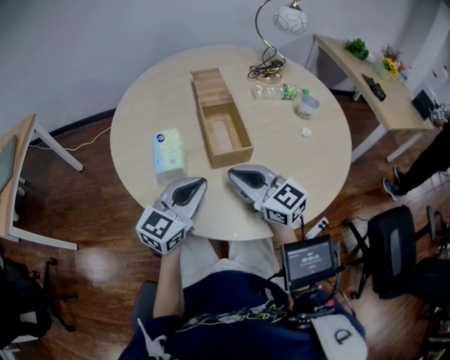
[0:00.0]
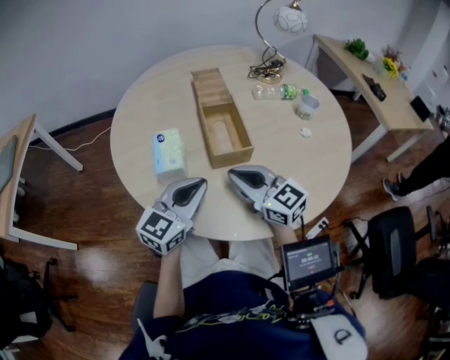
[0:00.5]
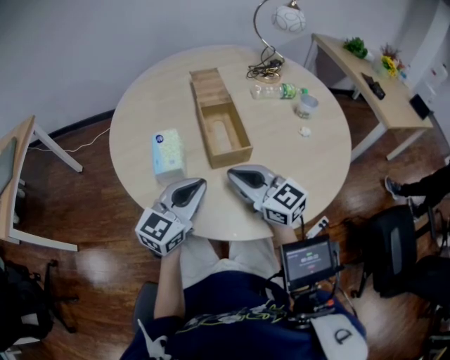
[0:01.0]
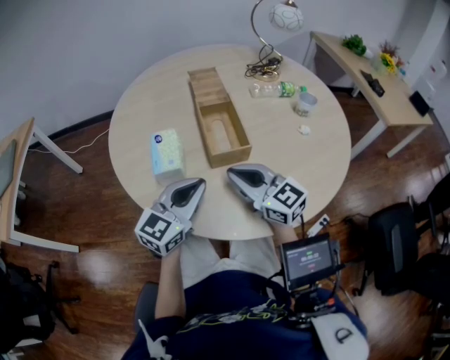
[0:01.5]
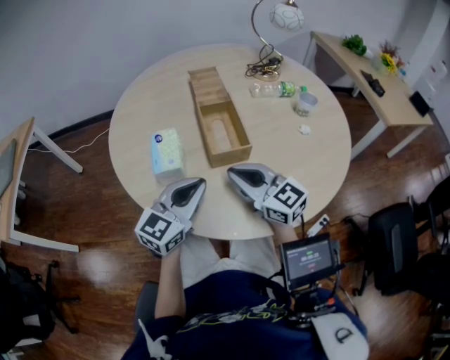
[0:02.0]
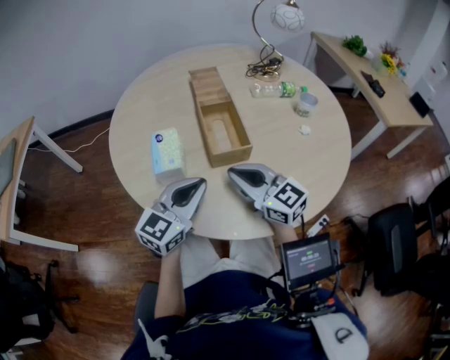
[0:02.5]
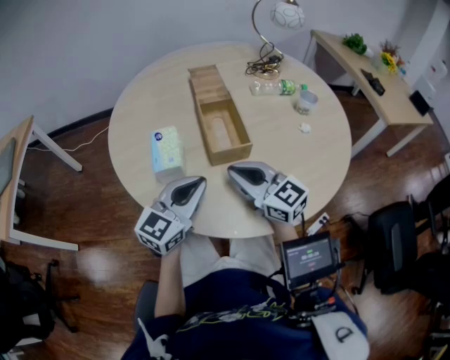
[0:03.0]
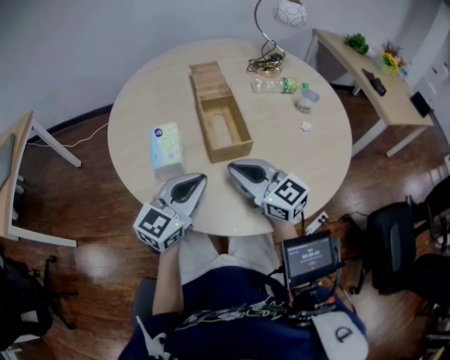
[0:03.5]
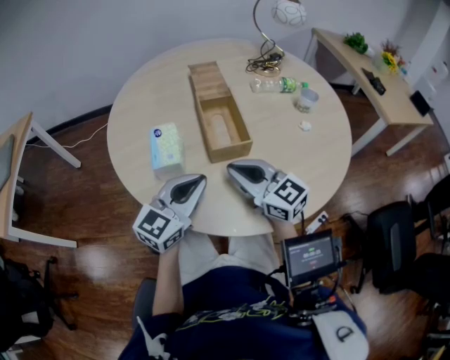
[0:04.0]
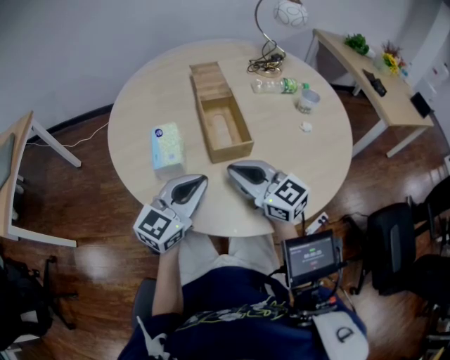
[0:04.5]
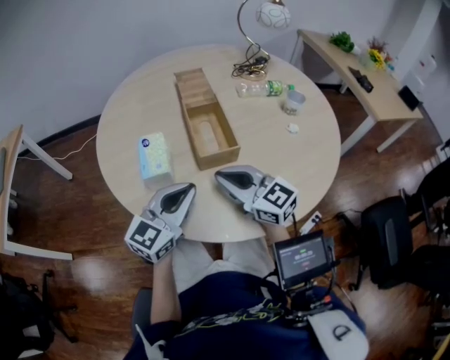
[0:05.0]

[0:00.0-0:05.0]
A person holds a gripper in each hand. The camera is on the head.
0:00.0 to 0:05.0: Both grippers stay put.

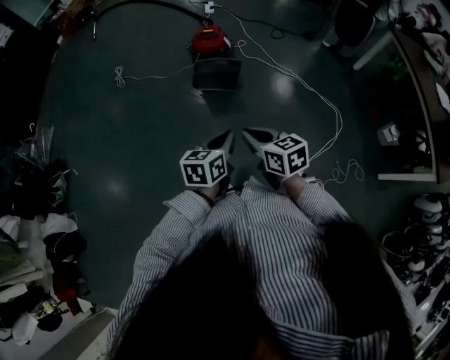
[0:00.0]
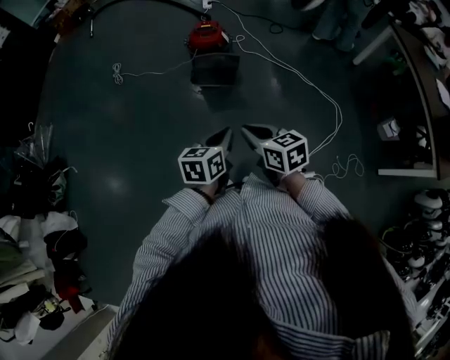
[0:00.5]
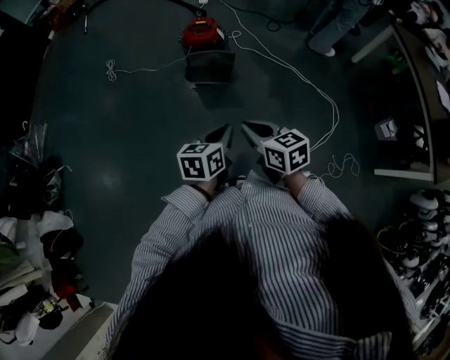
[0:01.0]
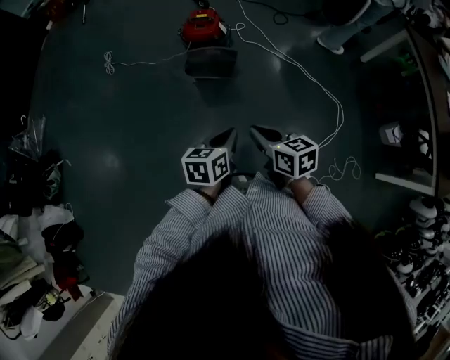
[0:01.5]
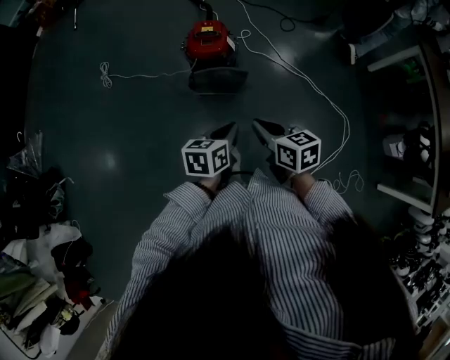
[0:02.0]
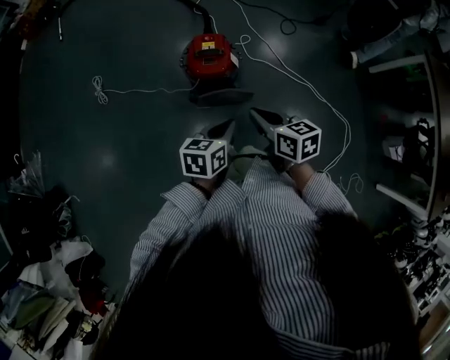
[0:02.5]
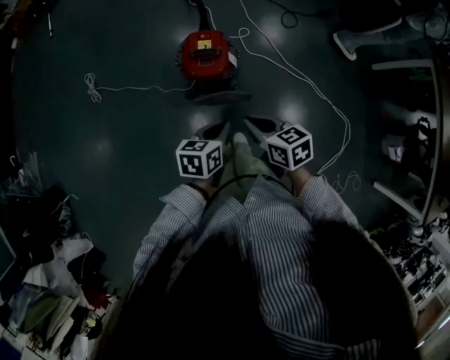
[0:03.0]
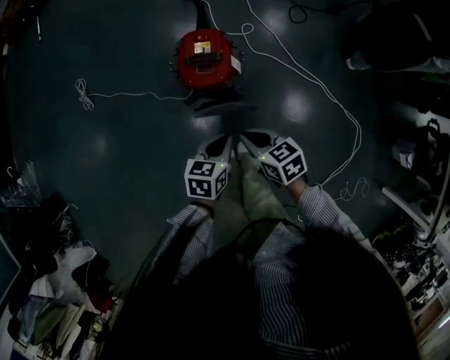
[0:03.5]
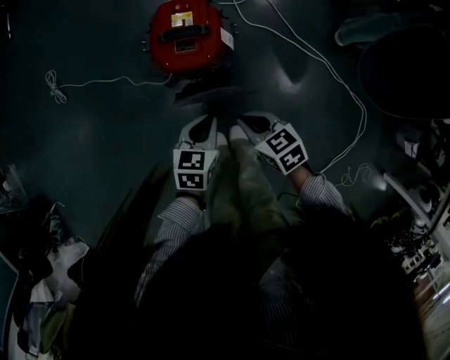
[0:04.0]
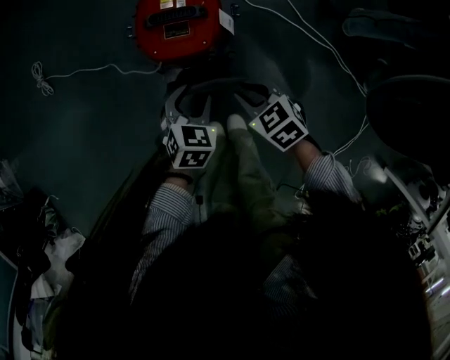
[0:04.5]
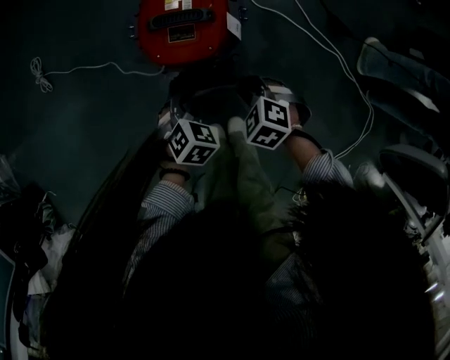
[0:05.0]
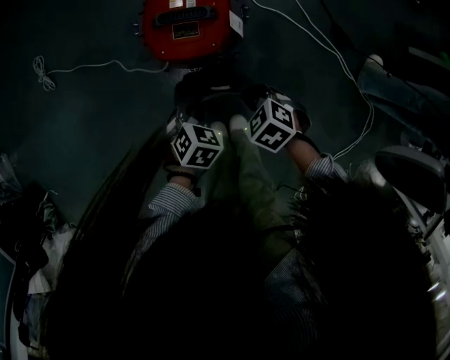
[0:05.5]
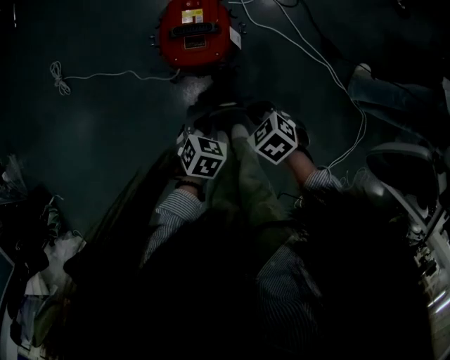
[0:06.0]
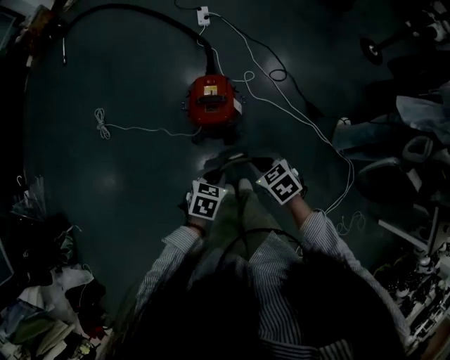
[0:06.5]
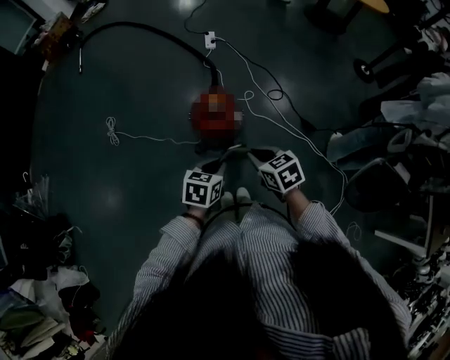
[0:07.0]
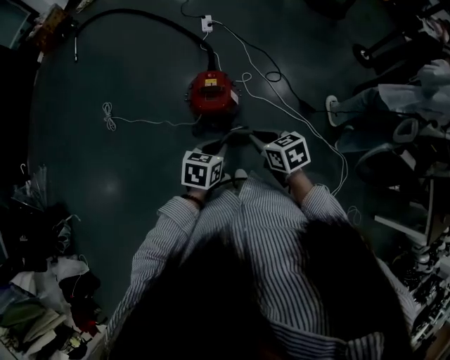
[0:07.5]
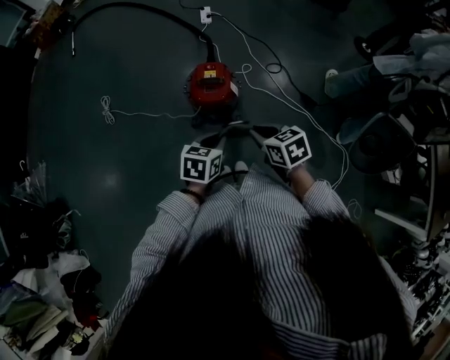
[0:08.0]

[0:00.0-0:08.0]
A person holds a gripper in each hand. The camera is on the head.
0:00.0 to 0:02.0: Both grippers move forward, about 30 cm.
0:02.0 to 0:04.0: Both grippers travel together downward and forward, approximately 40 cm. The right gripper swivels some 20 degrees.
0:04.0 to 0:06.0: The right gripper travels downward and back again, approximately 10 cm each way, and turns by roughly 30 degrees. The left gripper reaches some 10 cm downward, then returns, changes its angle by roughly 30 degrees, and opens, then closes once more.
0:06.0 to 0:08.0: The two grippers go some 30 cm upward. The left gripper rotates some 30 degrees; the right gripper turns by roughly 30 degrees.

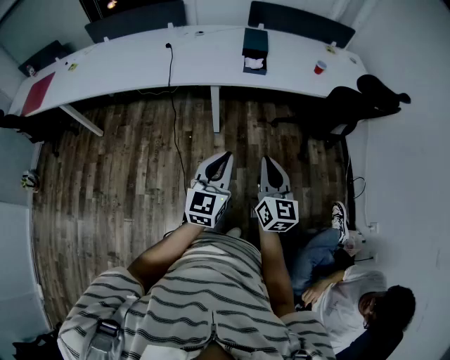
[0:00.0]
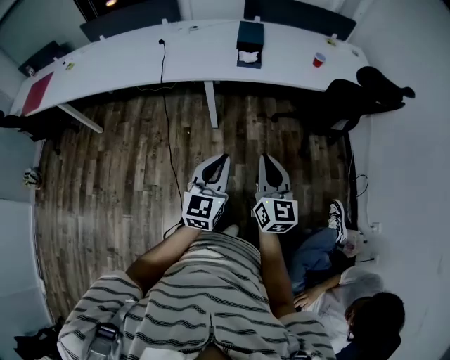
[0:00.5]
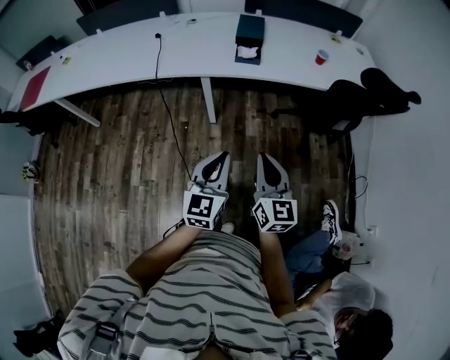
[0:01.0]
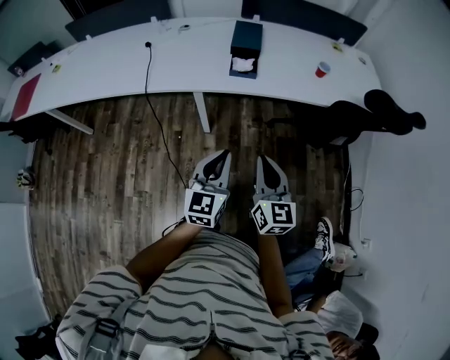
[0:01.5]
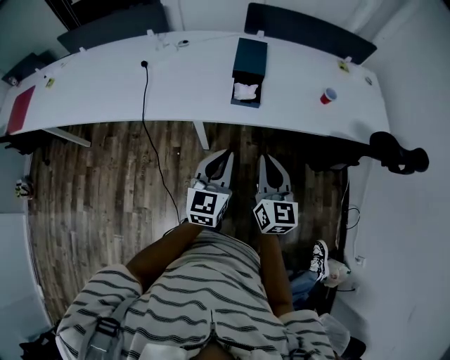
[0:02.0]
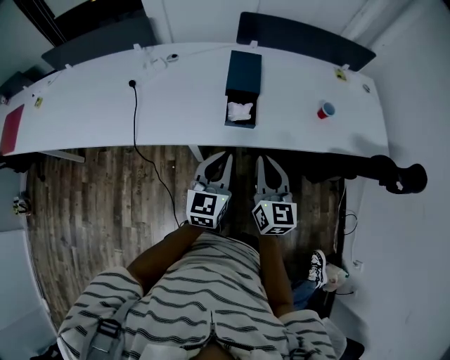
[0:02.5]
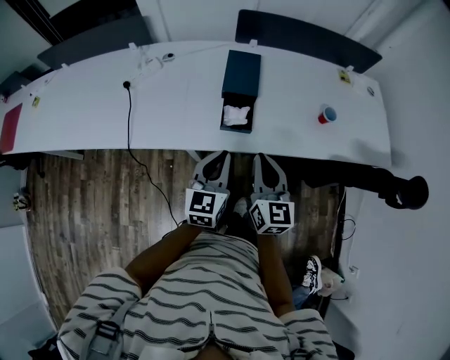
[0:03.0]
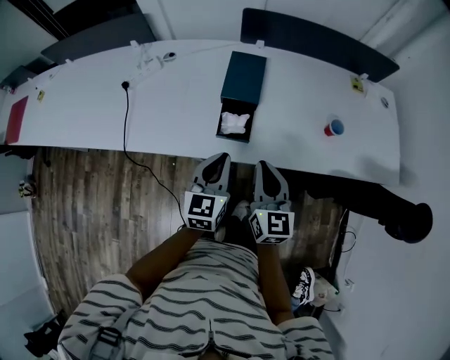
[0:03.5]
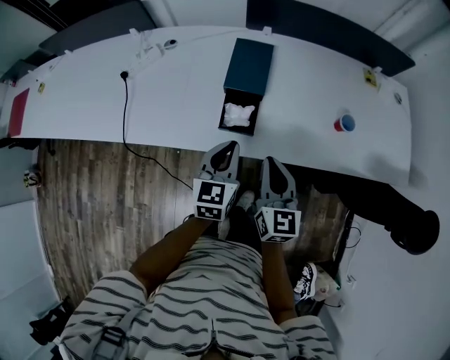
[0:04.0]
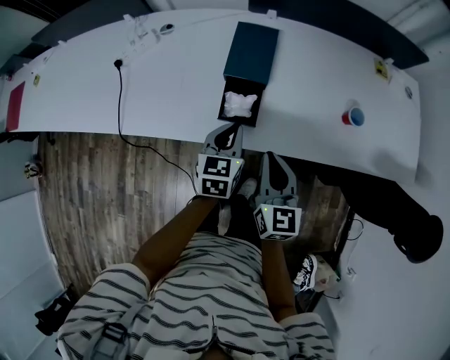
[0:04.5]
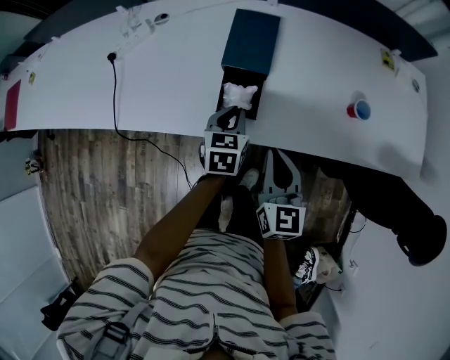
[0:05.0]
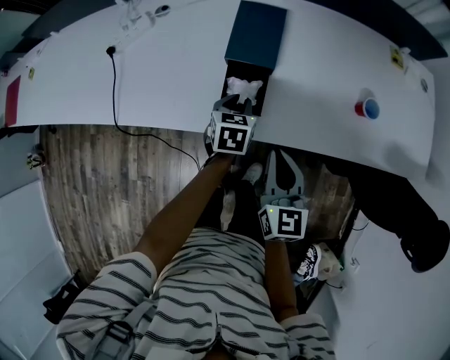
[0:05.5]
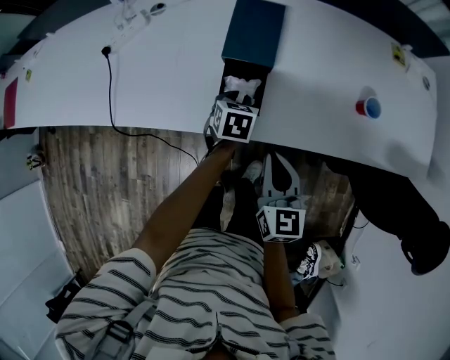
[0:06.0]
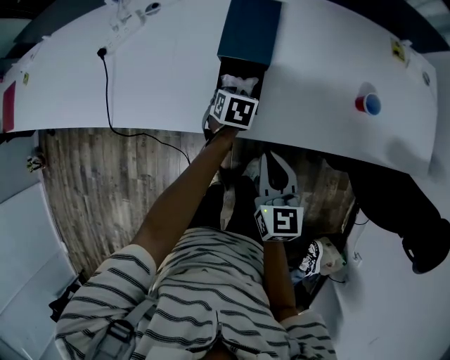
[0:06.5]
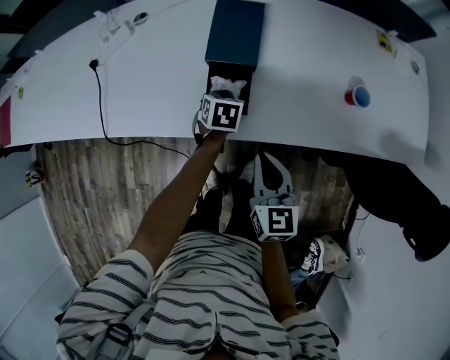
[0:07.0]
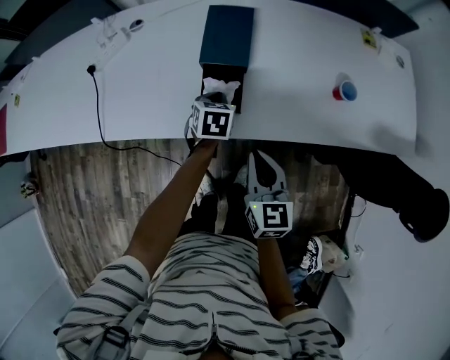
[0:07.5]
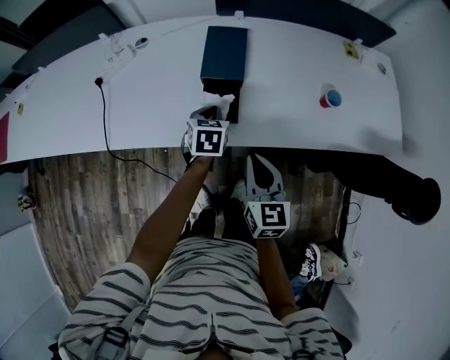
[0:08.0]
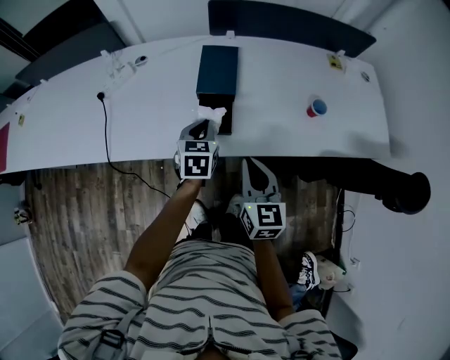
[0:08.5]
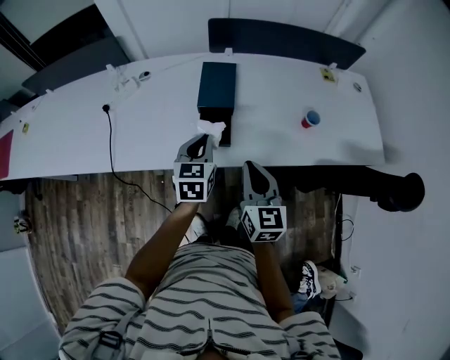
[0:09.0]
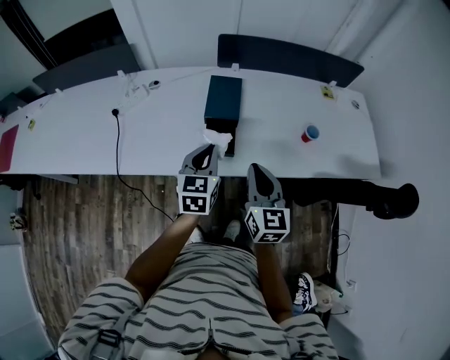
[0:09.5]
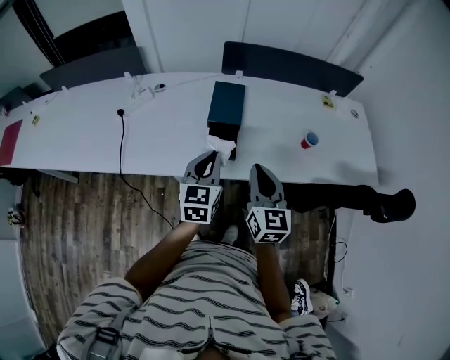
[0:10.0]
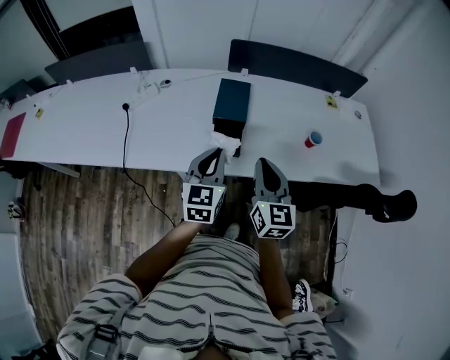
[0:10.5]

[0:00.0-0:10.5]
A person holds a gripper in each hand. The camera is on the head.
0:00.0 to 0:02.0: Both grippers move forward, some 30 cm.
0:02.0 to 0:04.0: The grippers both shift forward by approximately 20 cm.
0:04.0 to 0:06.5: The left gripper goes approximately 25 cm downward and forward, and tilts its fingers some 40 degrees downward. Meanwhile the right gripper moves downward, about 10 cm.
0:06.5 to 0:08.5: The left gripper moves upward, roughly 15 cm, and rotates roughly 30 degrees. Meanwhile the right gripper moves upward, about 10 cm.
0:08.5 to 0:10.5: The right gripper moves upward, roughly 10 cm. The left gripper moves upward and backward, about 15 cm, and swivels approximately 30 degrees.

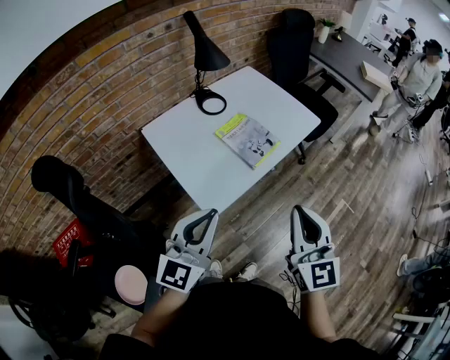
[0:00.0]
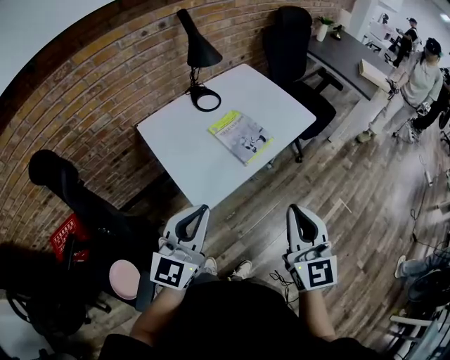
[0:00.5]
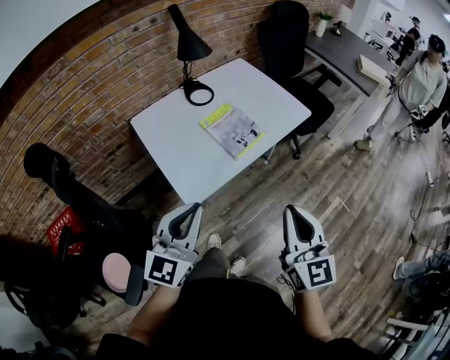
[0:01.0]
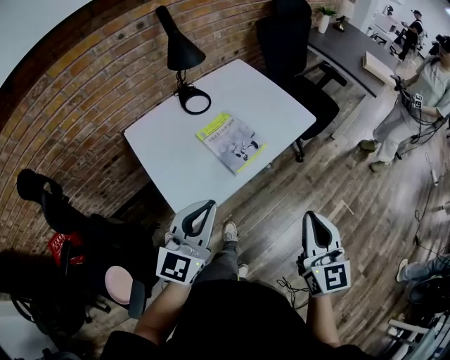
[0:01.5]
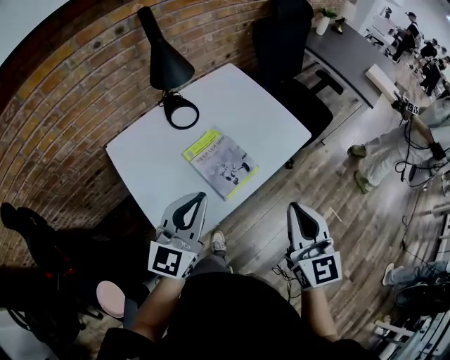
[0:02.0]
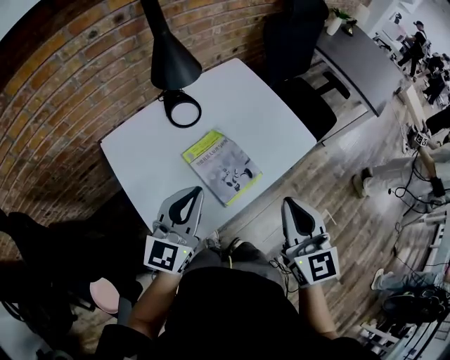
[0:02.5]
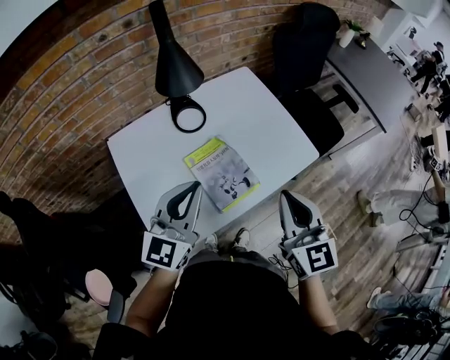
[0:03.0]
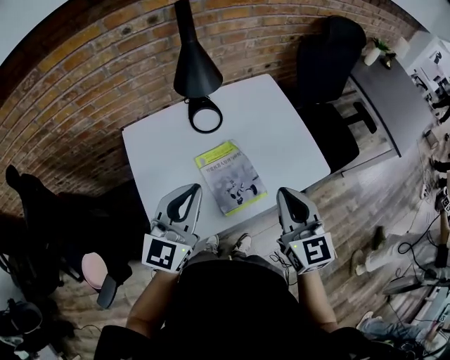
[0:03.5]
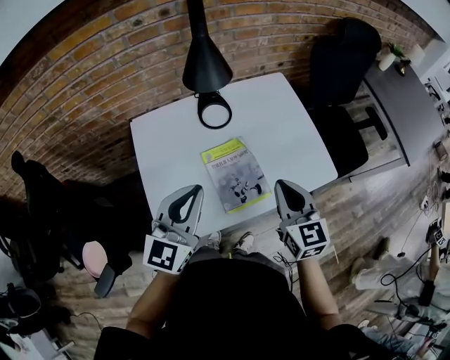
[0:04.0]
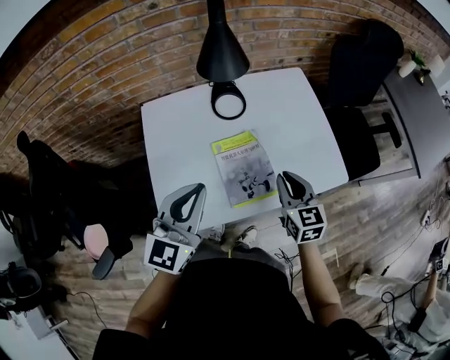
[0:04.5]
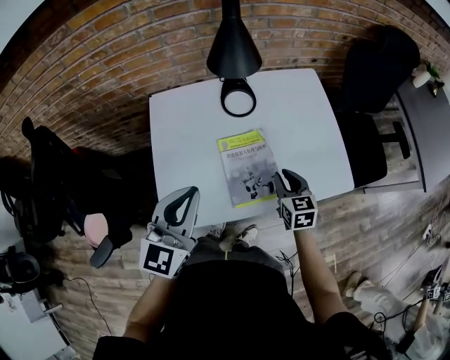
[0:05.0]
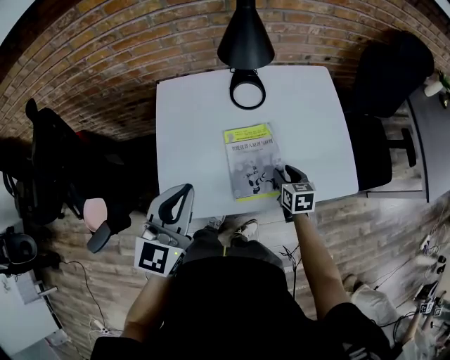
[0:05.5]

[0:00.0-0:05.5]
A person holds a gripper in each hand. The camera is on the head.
0:00.0 to 0:02.0: The grippers both shift forward by about 20 cm.
0:02.0 to 0:03.5: The left gripper is displaced forward by approximately 5 cm. Meanwhile the right gripper moves forward, approximately 15 cm.
0:03.5 to 0:05.5: The left gripper shifts by approximately 5 cm, and swivels some 20 degrees. The right gripper shifts some 30 cm downward, tilts its fingers roughly 30 degrees downward, and opens.
